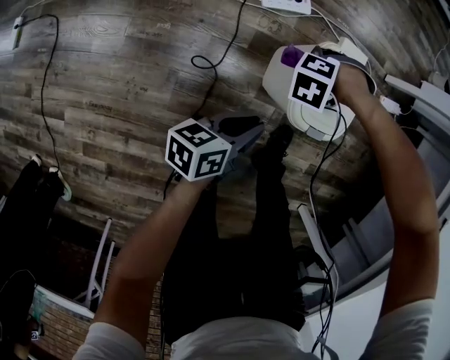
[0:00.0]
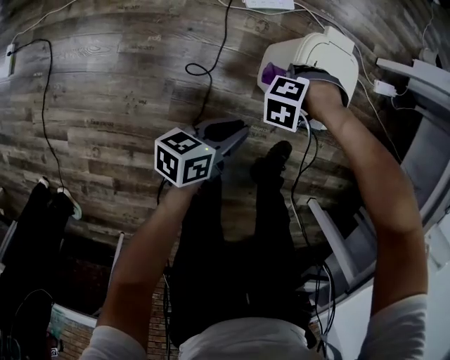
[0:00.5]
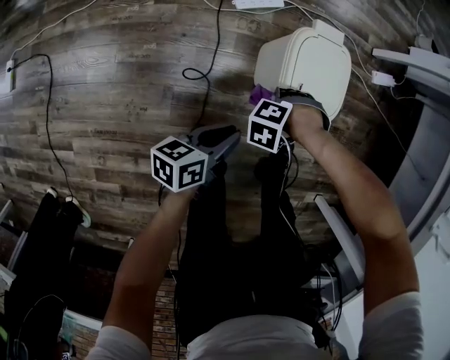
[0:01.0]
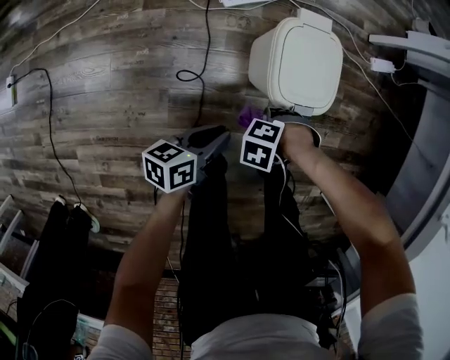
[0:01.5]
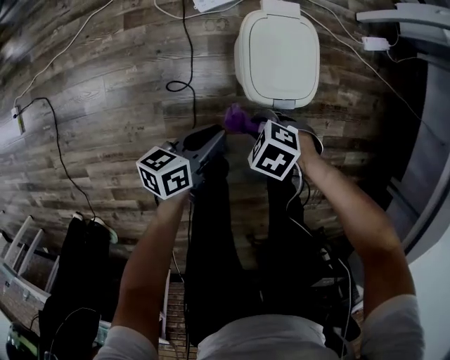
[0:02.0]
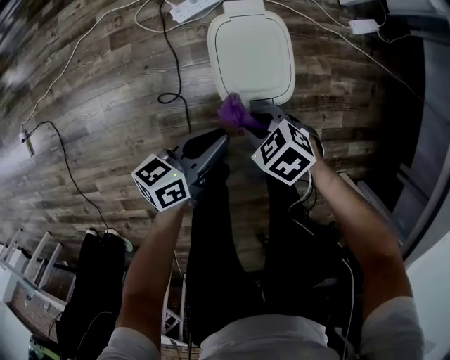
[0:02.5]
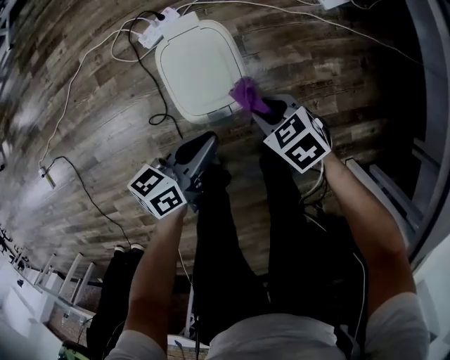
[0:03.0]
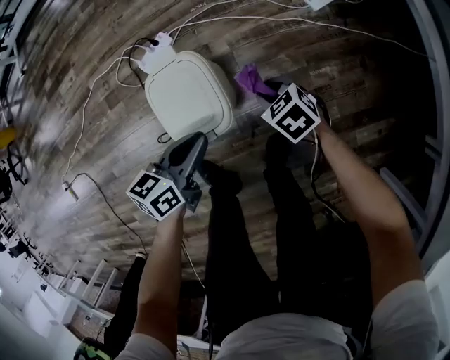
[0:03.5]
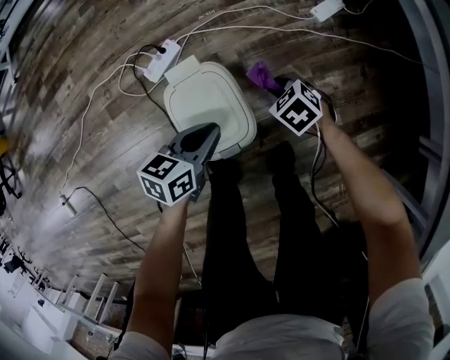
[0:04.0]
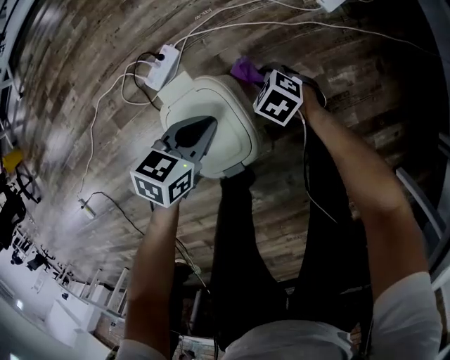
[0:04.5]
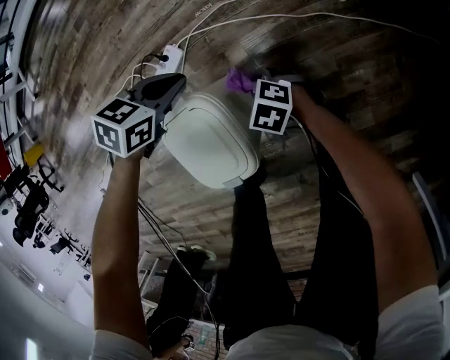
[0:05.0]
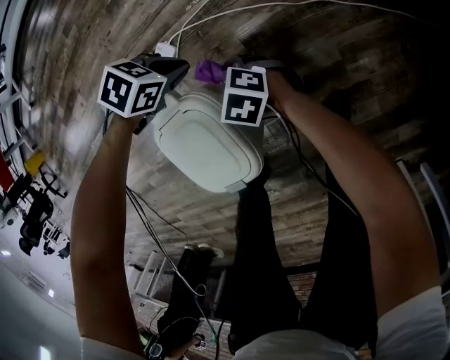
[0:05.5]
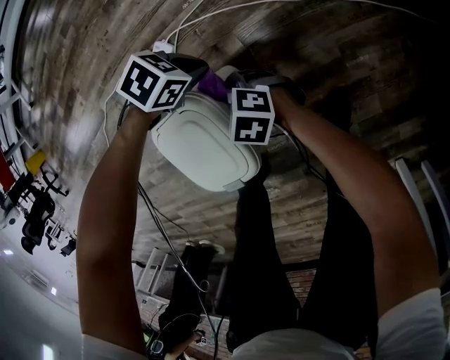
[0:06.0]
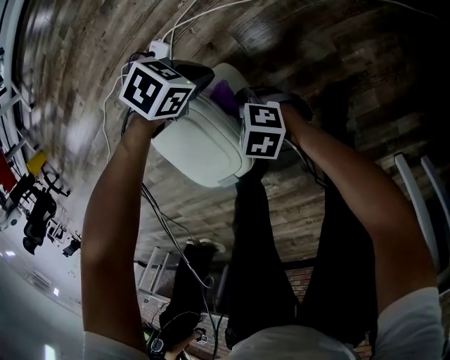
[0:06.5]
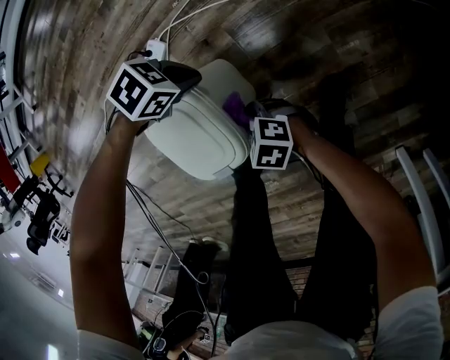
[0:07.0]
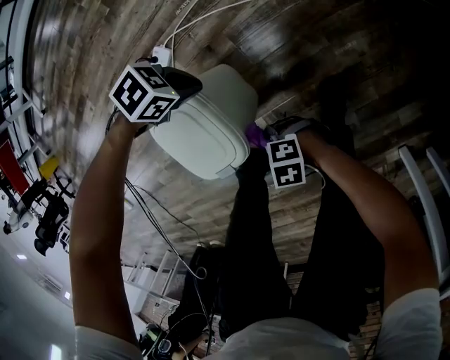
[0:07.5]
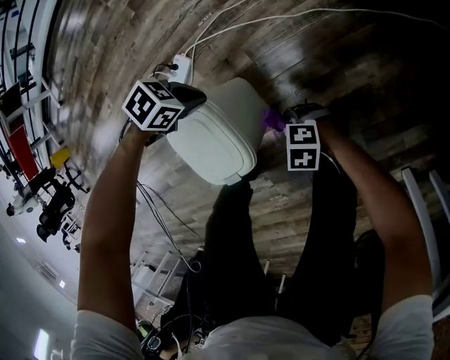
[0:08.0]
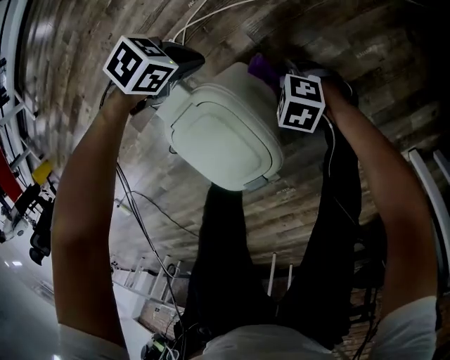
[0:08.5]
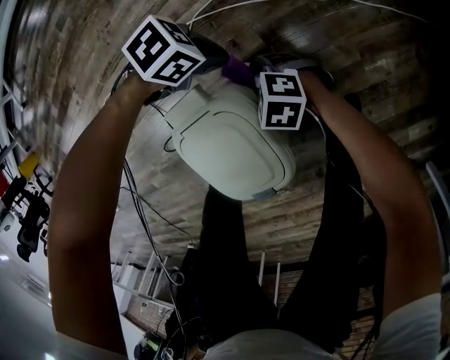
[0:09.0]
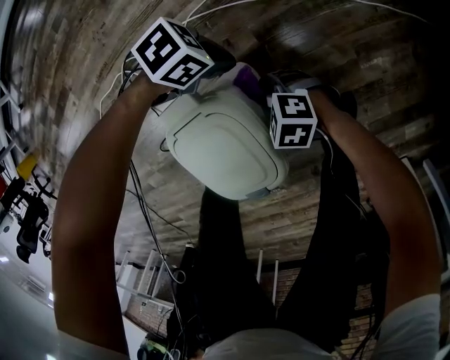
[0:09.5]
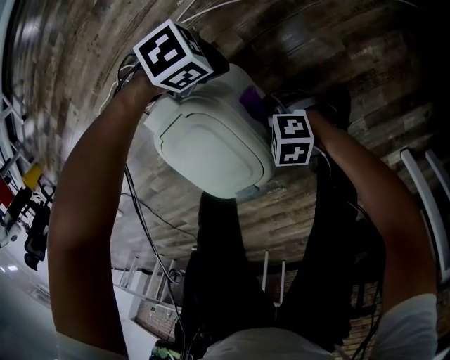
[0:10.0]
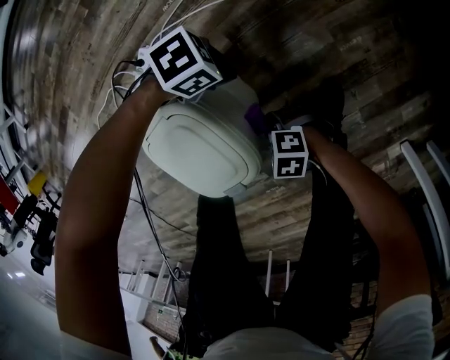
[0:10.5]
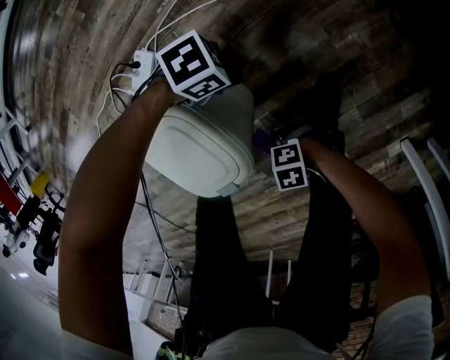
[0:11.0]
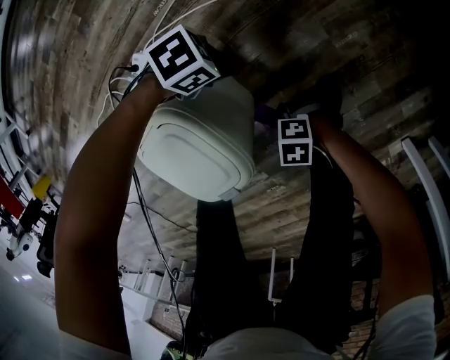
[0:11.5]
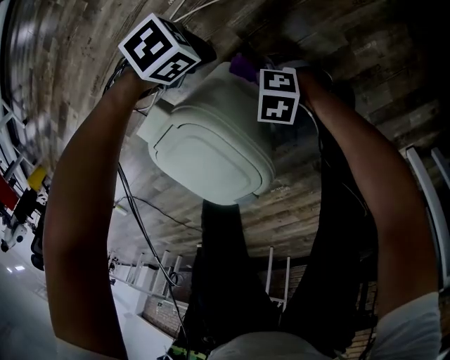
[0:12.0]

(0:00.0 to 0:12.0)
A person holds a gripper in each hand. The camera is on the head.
0:02.0 - 0:04.0: The left gripper shifts by roughly 25 cm, and rotates roughly 30 degrees.
0:04.0 - 0:06.0: The left gripper ends up approximately 25 cm from where it was, and changes its angle by some 50 degrees.
0:06.0 - 0:08.0: The left gripper moves upward, roughly 5 cm.
0:08.0 - 0:10.0: The left gripper goes some 10 cm downward, and swivels about 20 degrees.

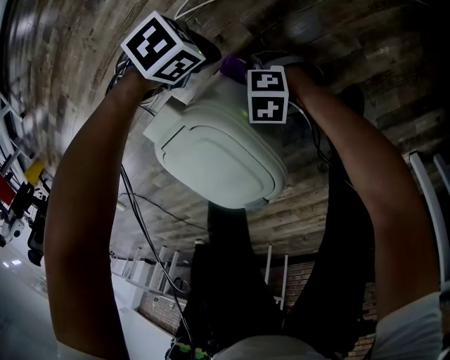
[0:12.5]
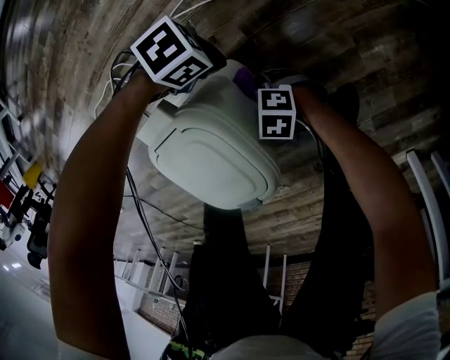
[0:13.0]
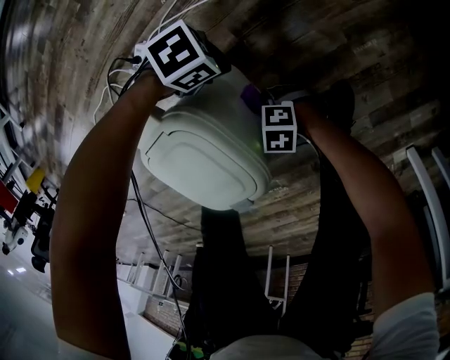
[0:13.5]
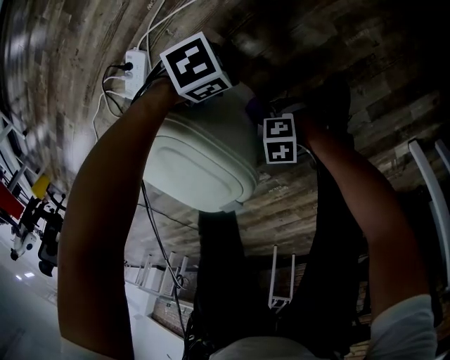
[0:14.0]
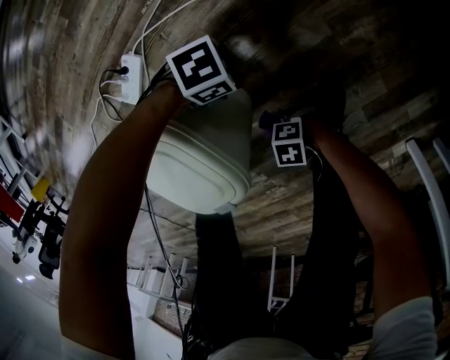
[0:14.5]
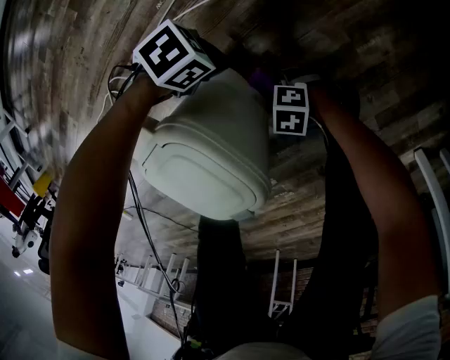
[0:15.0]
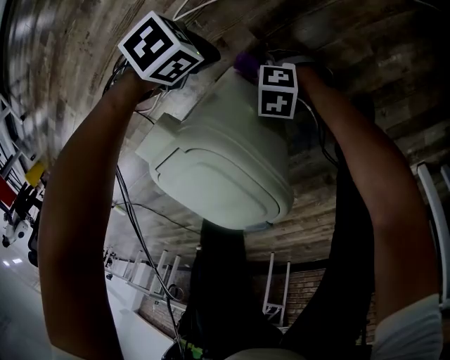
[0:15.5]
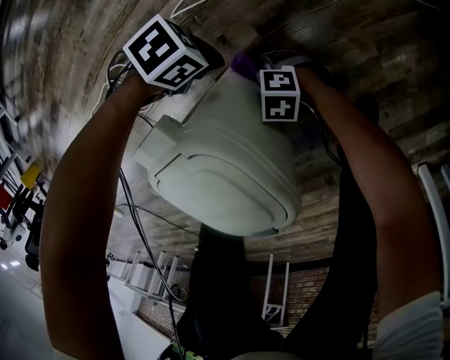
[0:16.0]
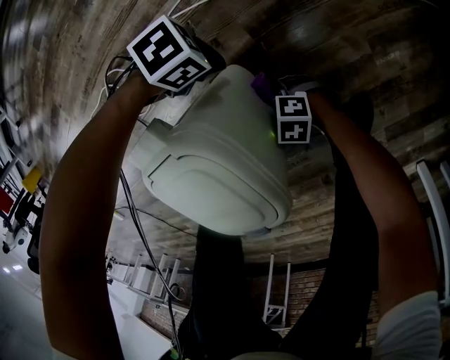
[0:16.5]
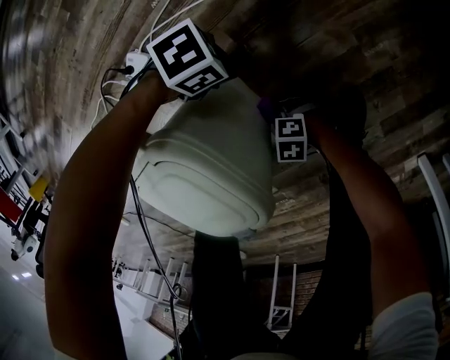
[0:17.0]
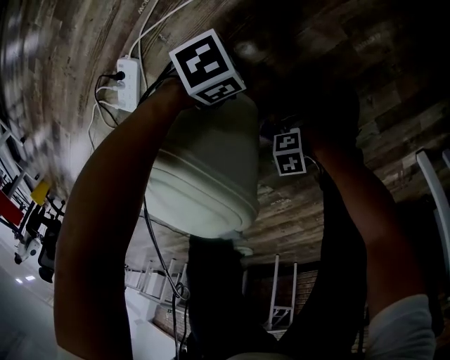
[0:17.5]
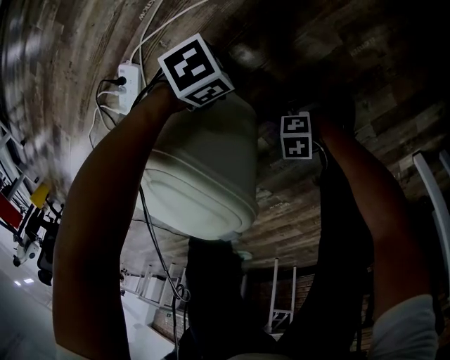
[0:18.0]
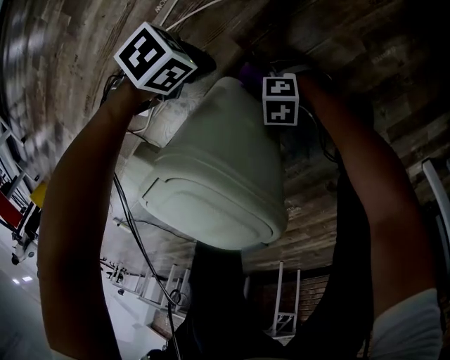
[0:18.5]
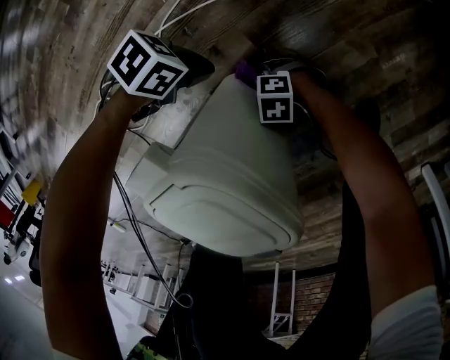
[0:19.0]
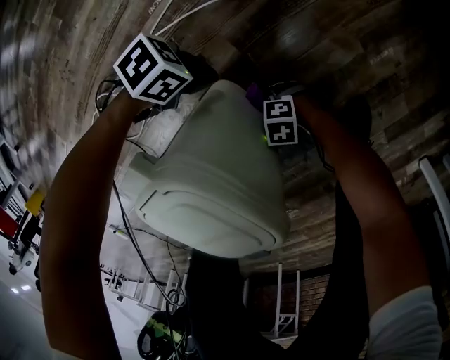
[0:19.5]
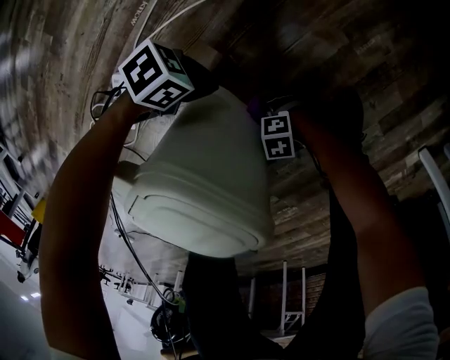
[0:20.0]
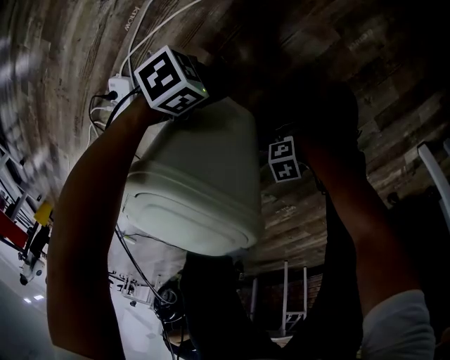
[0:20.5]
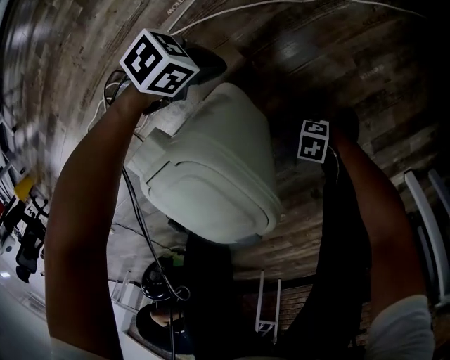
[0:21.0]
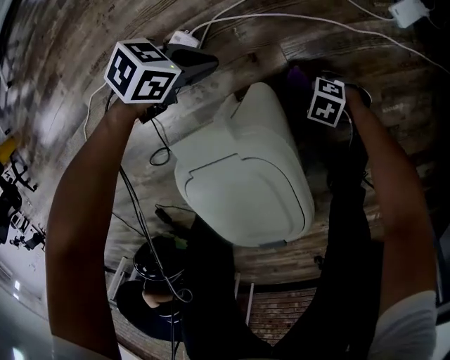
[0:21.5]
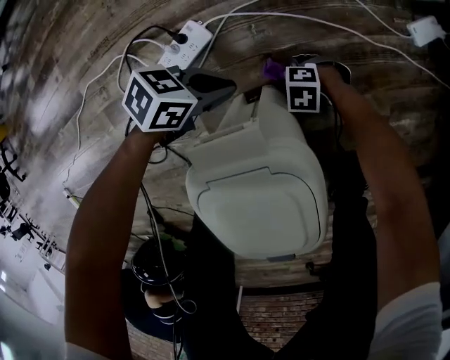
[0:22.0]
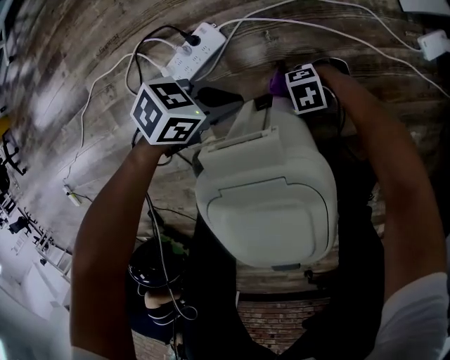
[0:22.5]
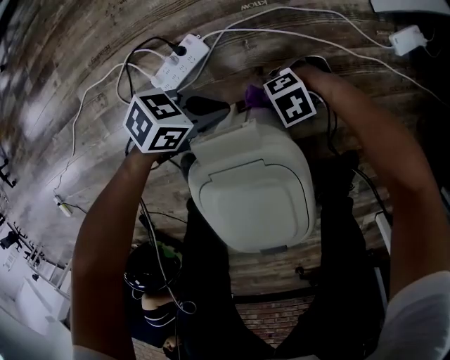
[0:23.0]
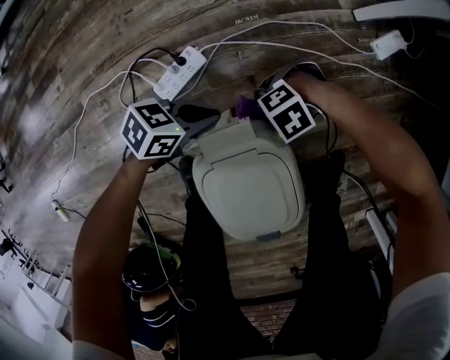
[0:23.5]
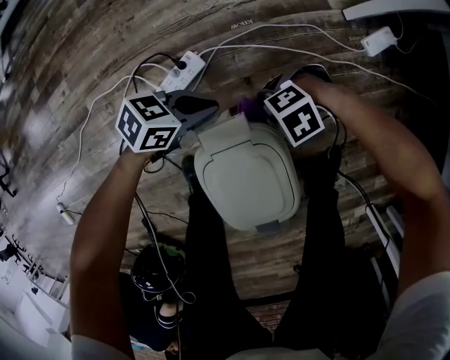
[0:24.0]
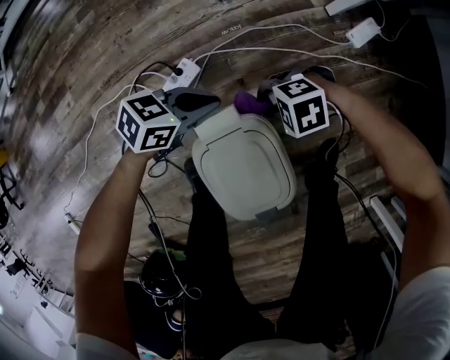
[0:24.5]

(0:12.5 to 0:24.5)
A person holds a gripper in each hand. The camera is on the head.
0:12.5 - 0:14.5: The left gripper ends up approximately 15 cm from where it was.
0:14.5 - 0:16.5: The left gripper changes place by some 15 cm.
0:18.5 - 0:20.5: The left gripper changes place by some 10 cm.
0:20.5 - 0:22.5: The left gripper moves some 25 cm, and changes its angle by about 50 degrees.
0:22.5 - 0:24.5: The left gripper moves upward, about 20 cm.

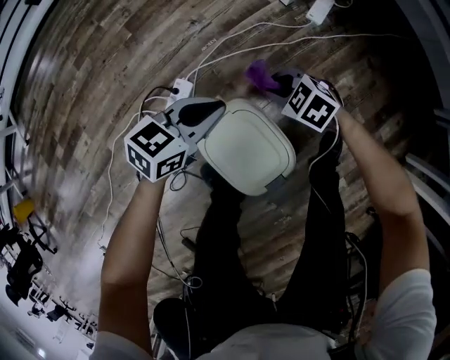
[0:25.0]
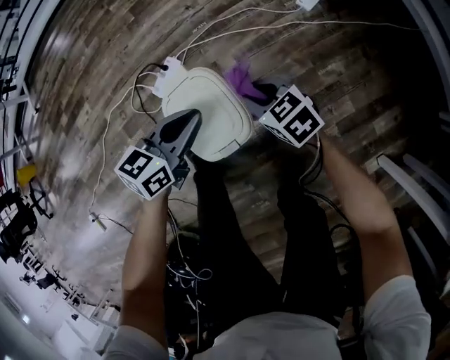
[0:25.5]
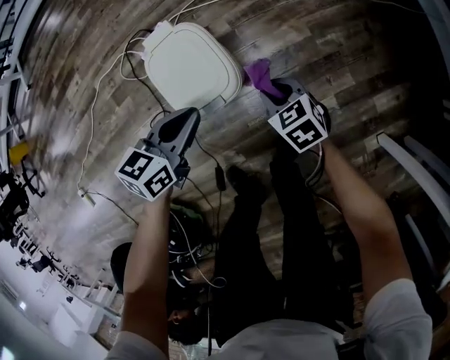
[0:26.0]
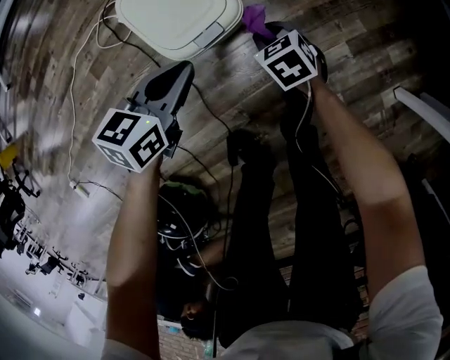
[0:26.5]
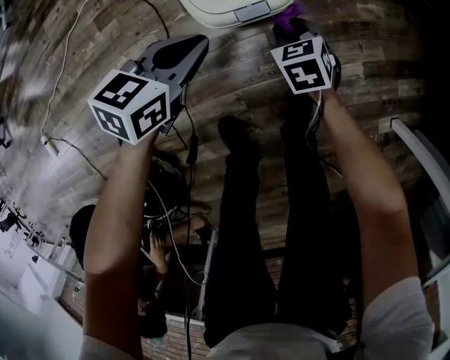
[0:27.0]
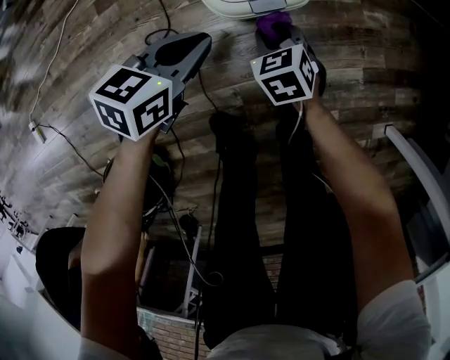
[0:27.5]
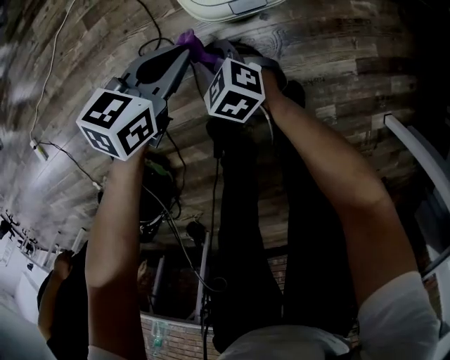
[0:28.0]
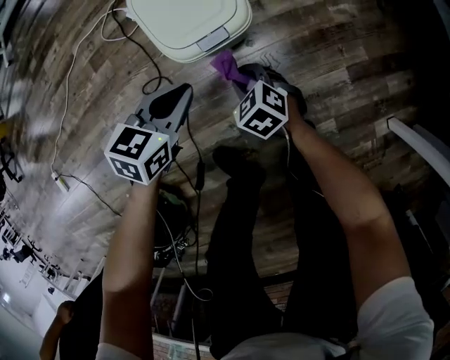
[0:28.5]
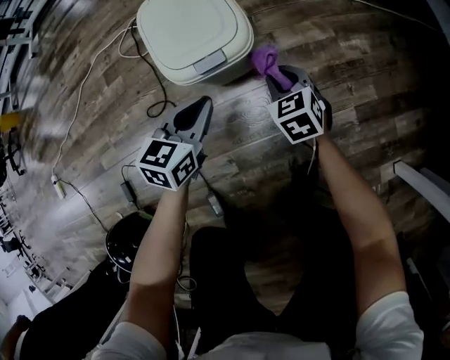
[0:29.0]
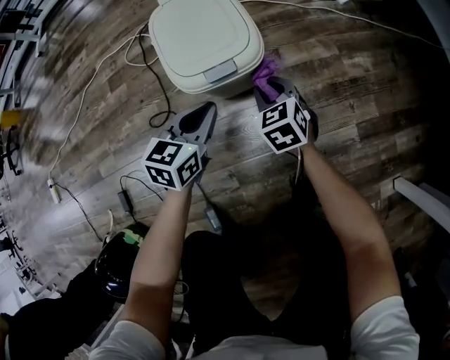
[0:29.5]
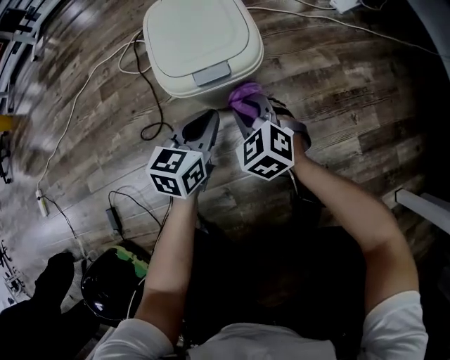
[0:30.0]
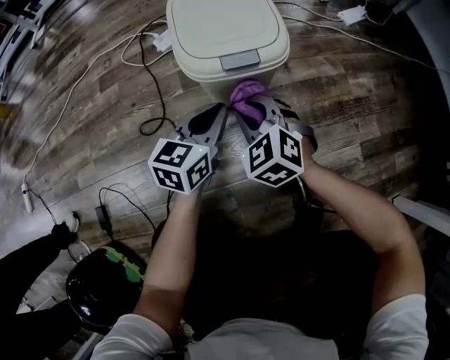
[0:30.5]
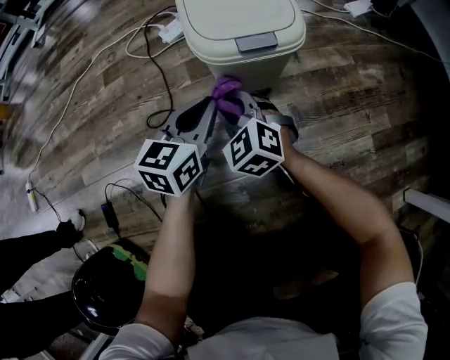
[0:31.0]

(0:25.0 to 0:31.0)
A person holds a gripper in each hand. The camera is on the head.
0:25.0 - 0:27.0: The left gripper moves about 35 cm, and rotates approximately 30 degrees.
0:27.0 - 0:29.0: The left gripper goes approximately 10 cm downward.
0:29.0 - 0:31.0: The left gripper changes place by approximately 10 cm.
